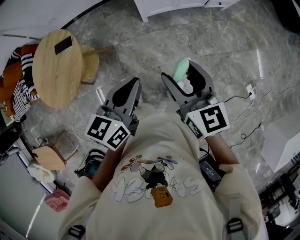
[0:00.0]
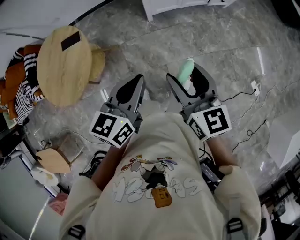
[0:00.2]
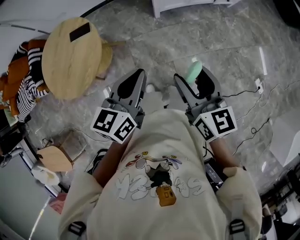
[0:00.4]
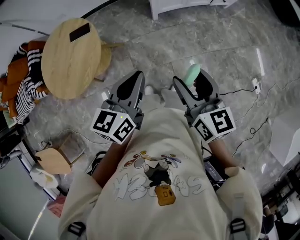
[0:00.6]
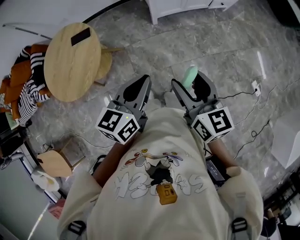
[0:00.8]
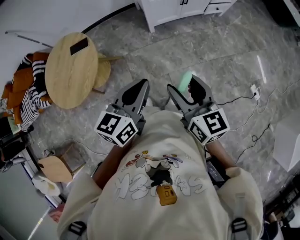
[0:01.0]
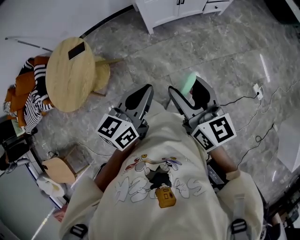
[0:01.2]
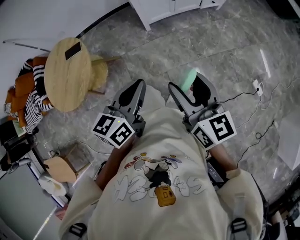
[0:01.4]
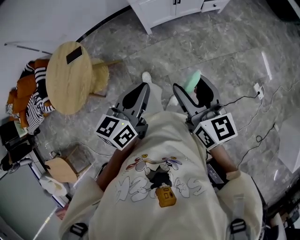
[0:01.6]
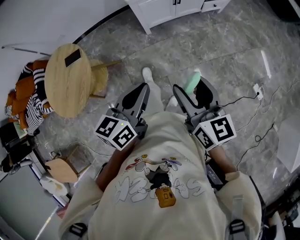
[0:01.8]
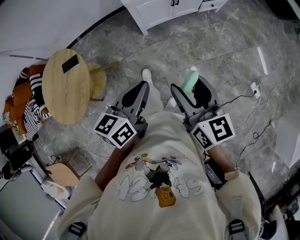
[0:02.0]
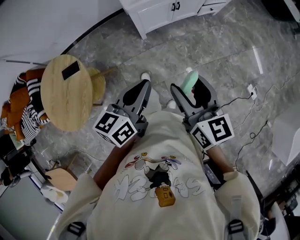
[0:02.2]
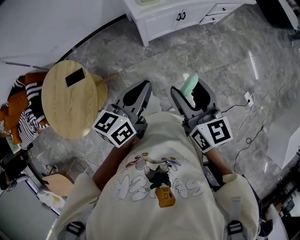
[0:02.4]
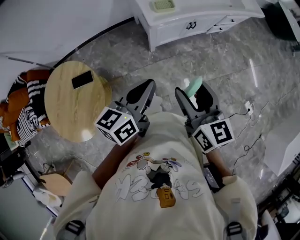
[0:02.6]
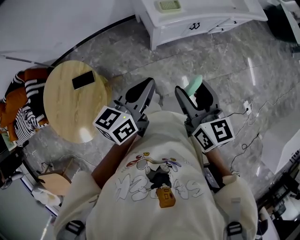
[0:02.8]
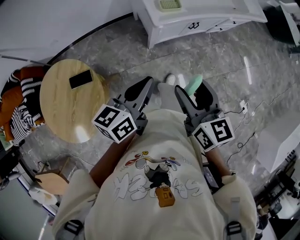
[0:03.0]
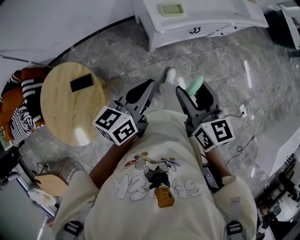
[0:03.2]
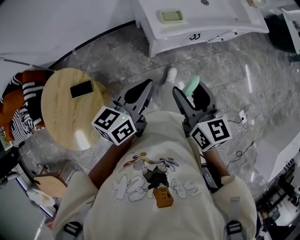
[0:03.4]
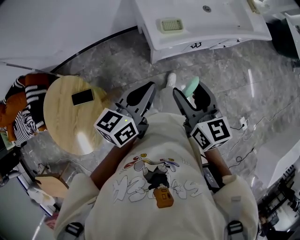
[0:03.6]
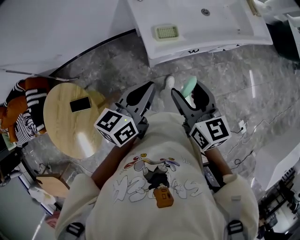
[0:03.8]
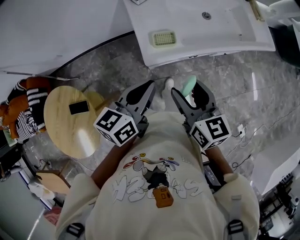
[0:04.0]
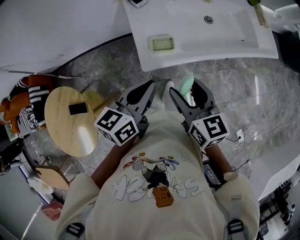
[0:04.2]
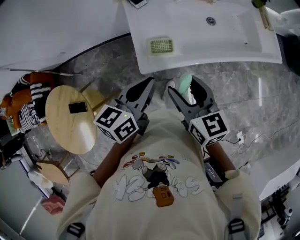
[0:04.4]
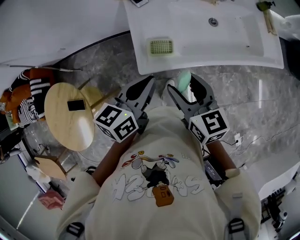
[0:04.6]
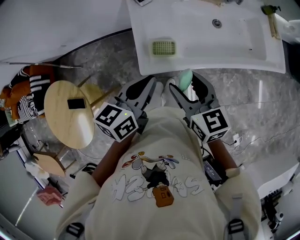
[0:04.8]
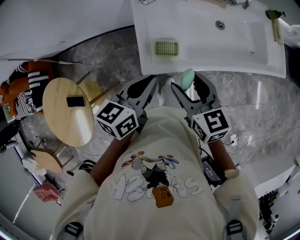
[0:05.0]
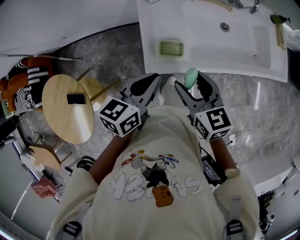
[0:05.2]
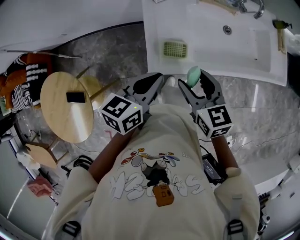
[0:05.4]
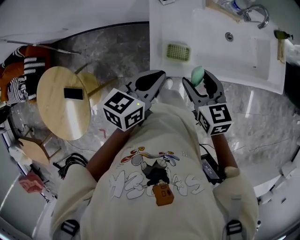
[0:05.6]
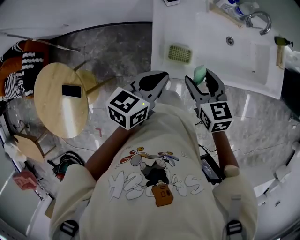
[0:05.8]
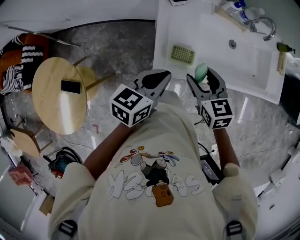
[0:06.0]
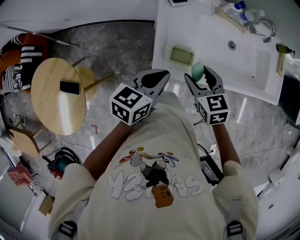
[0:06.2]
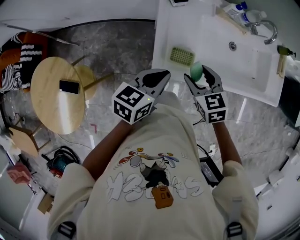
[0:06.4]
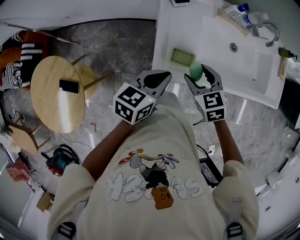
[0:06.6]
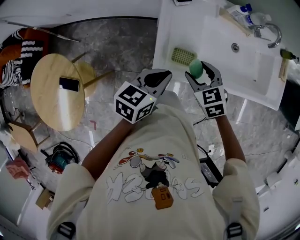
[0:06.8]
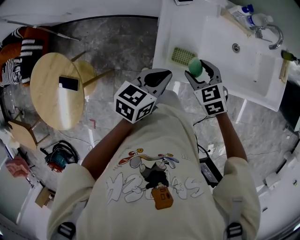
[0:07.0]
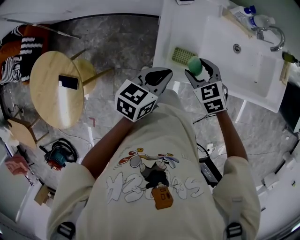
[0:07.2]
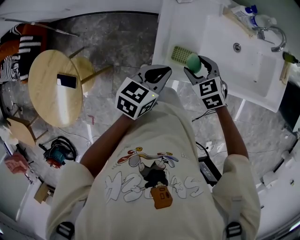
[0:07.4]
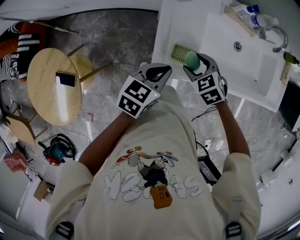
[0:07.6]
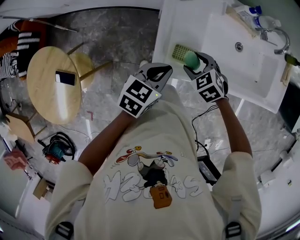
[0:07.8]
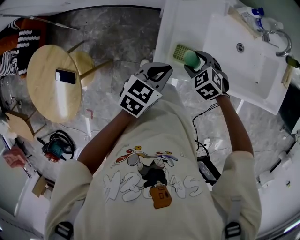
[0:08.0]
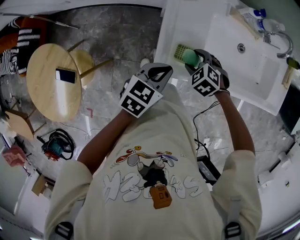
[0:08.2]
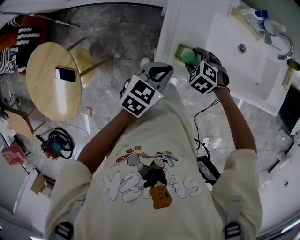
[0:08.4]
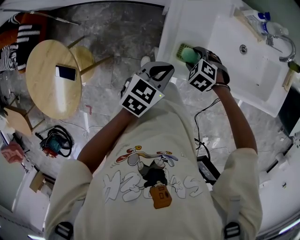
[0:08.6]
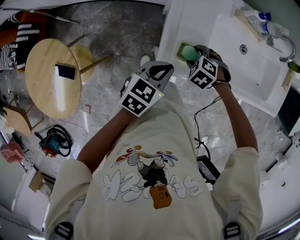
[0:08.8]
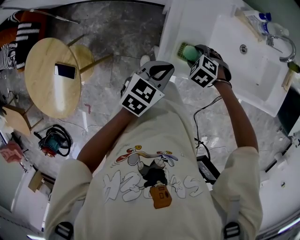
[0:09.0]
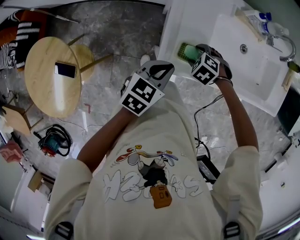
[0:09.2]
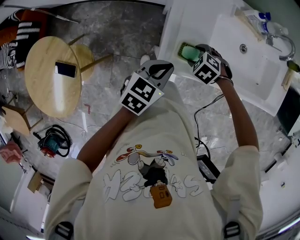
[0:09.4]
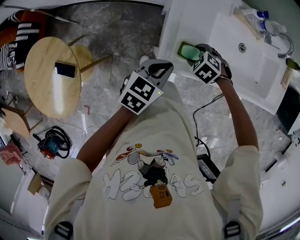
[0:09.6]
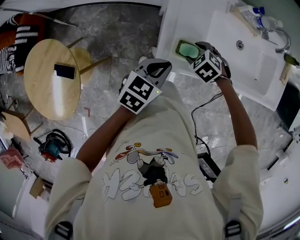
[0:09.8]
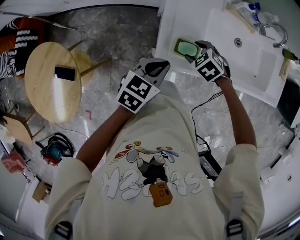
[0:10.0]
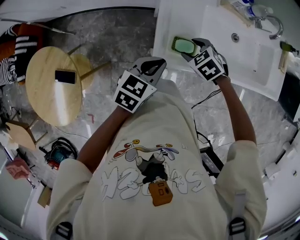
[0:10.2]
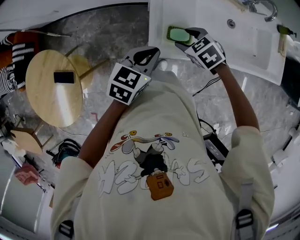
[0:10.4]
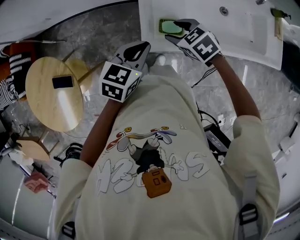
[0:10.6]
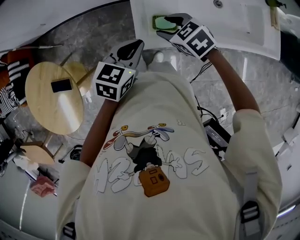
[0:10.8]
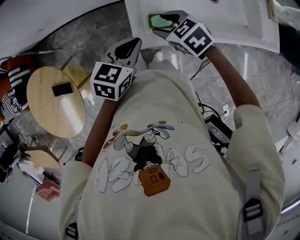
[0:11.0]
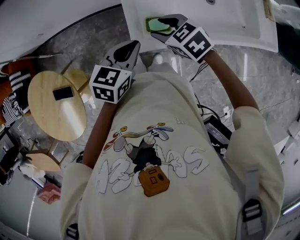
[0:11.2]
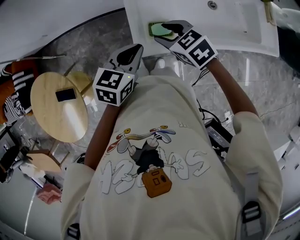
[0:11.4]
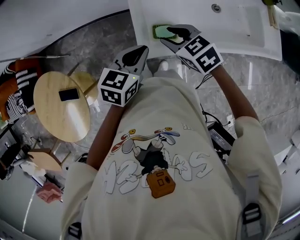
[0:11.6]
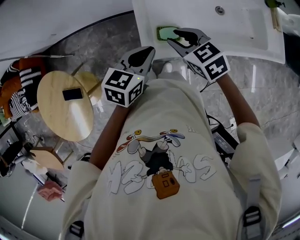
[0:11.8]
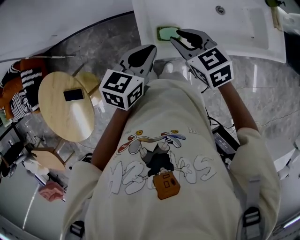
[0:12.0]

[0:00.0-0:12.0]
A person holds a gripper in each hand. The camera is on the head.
0:00.0 to 0:01.6: The right gripper shifts some 10 cm backward and to the right; the left gripper heads backward, covering about 5 cm, and goes to the left and returns, about 10 cm each way.
0:01.6 to 0:03.0: The two grippers go approximately 30 cm forward and to the left.
0:03.0 to 0:04.4: The right gripper goes approximately 25 cm forward; the left gripper shifts about 30 cm forward and to the right.
0:04.4 to 0:06.0: The left gripper goes roughly 10 cm forward and downward; the right gripper moves forward and downward, approximately 15 cm, and swivels roughly 20 degrees.
0:06.0 to 0:07.6: The left gripper shifts some 5 cm downward. Meanwhile the right gripper travels downward by approximately 10 cm, and changes its angle by roughly 30 degrees.
0:07.6 to 0:09.0: The right gripper heads downward, covering approximately 5 cm, and changes its angle by approximately 30 degrees.
0:09.0 to 0:10.4: The right gripper shifts approximately 10 cm upward, and swivels approximately 30 degrees.
0:10.4 to 0:12.0: The right gripper shifts roughly 10 cm upward, changes its angle by roughly 30 degrees, and closes up. Meanwhile the left gripper shifts by approximately 5 cm.

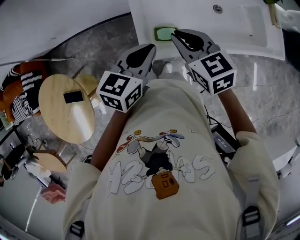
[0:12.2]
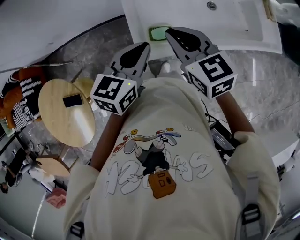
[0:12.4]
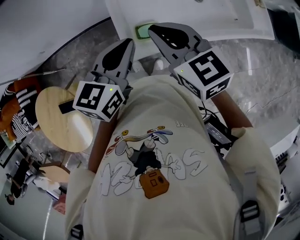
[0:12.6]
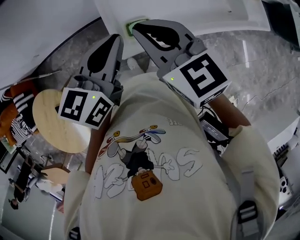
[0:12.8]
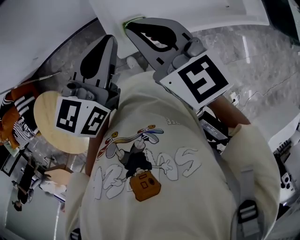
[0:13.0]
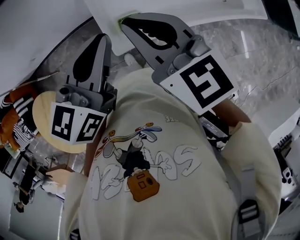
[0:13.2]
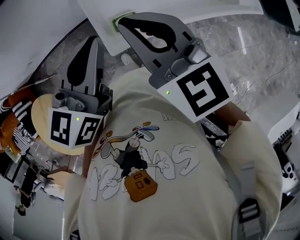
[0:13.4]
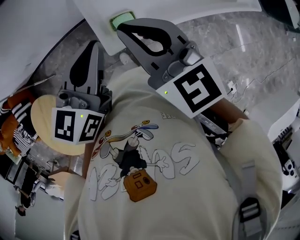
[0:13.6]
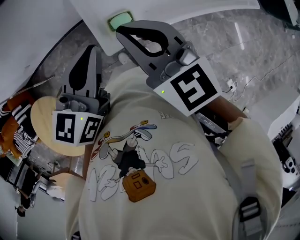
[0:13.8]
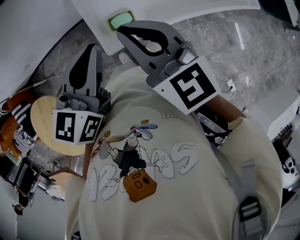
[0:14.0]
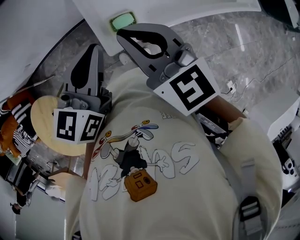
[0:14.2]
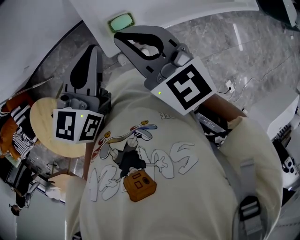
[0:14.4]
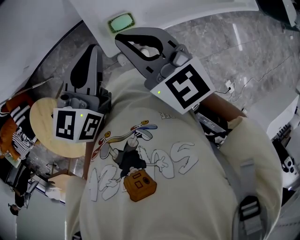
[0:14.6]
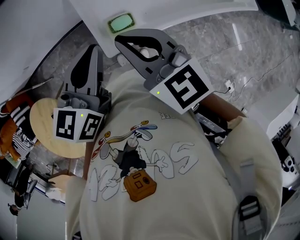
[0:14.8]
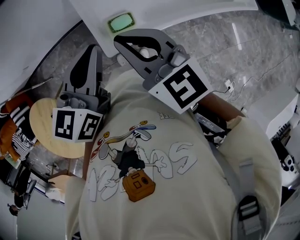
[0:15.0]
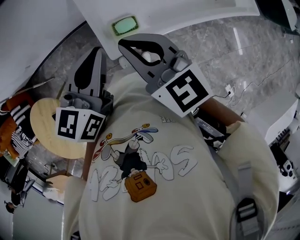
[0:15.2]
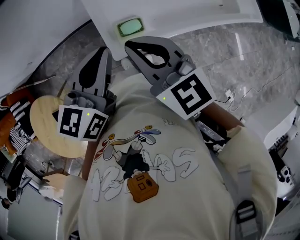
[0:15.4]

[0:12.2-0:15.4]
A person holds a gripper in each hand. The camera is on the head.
0:12.2 to 0:13.8: Both grippers move upward, roughly 10 cm. The right gripper changes its angle by approximately 20 degrees.
0:13.8 to 0:15.4: There are only small adjustments of the grippers.

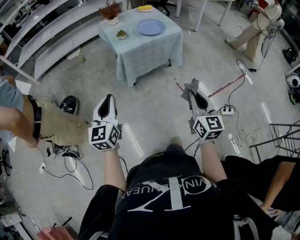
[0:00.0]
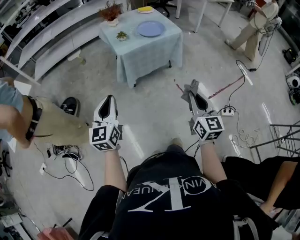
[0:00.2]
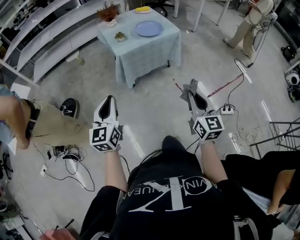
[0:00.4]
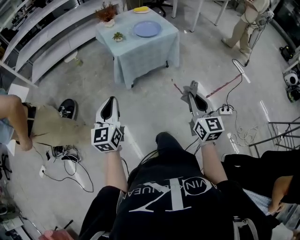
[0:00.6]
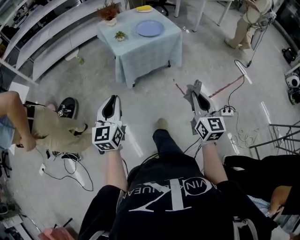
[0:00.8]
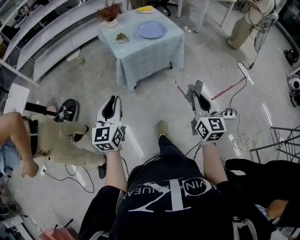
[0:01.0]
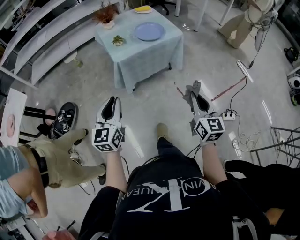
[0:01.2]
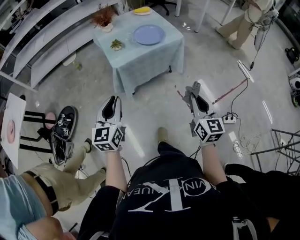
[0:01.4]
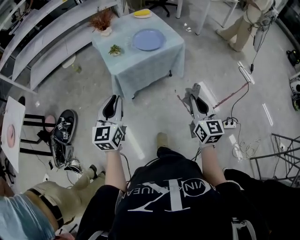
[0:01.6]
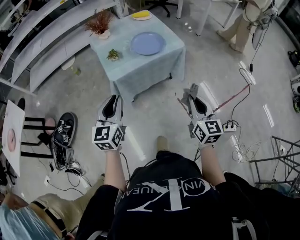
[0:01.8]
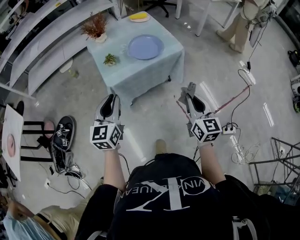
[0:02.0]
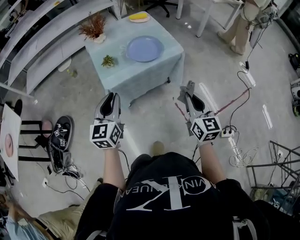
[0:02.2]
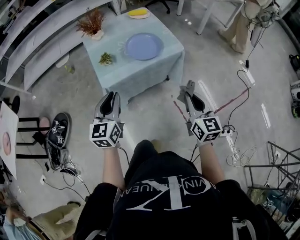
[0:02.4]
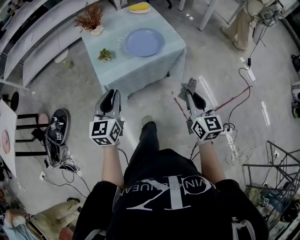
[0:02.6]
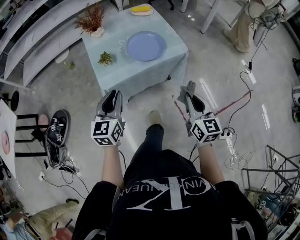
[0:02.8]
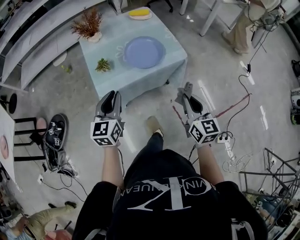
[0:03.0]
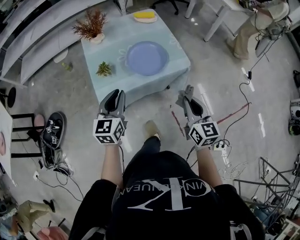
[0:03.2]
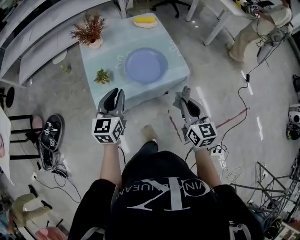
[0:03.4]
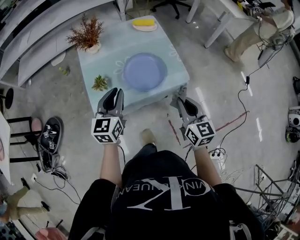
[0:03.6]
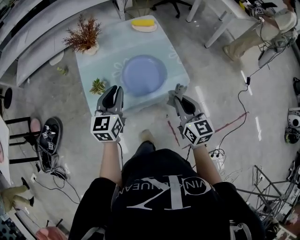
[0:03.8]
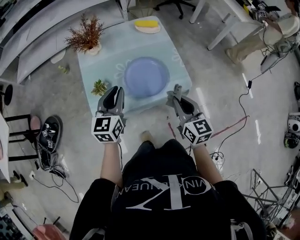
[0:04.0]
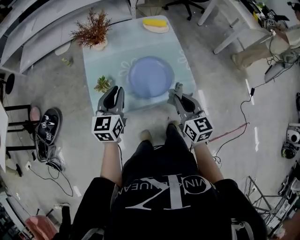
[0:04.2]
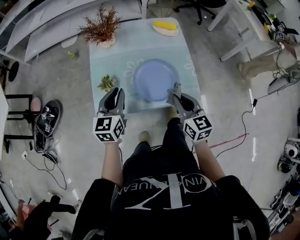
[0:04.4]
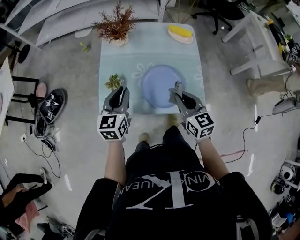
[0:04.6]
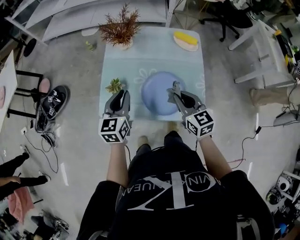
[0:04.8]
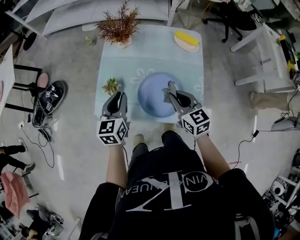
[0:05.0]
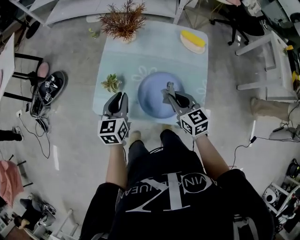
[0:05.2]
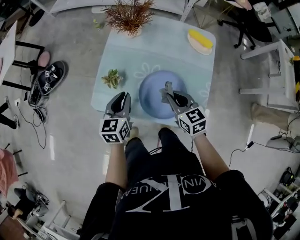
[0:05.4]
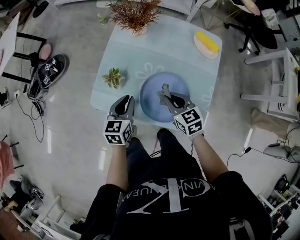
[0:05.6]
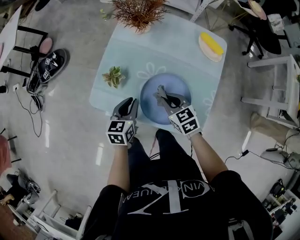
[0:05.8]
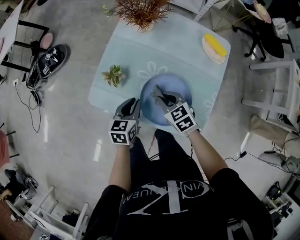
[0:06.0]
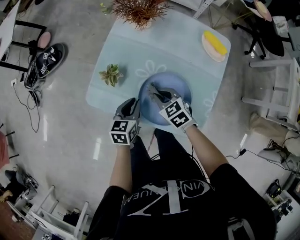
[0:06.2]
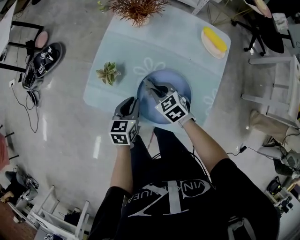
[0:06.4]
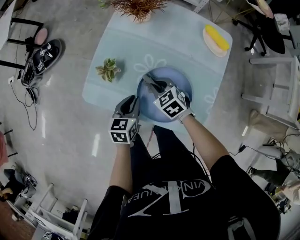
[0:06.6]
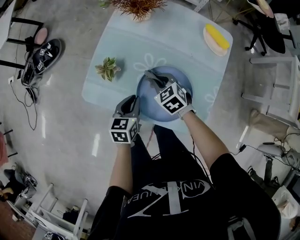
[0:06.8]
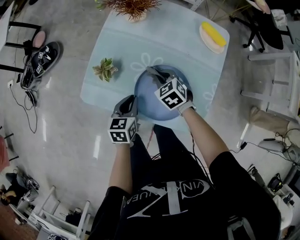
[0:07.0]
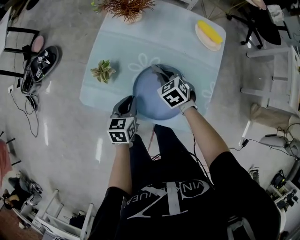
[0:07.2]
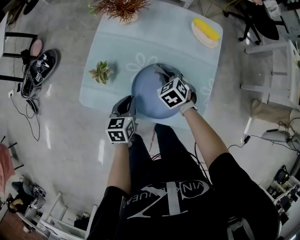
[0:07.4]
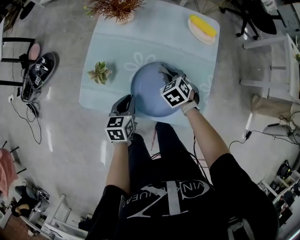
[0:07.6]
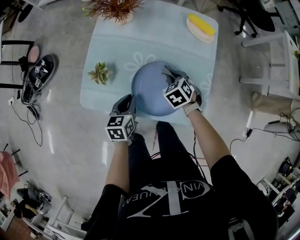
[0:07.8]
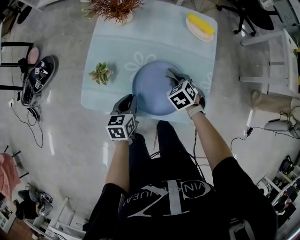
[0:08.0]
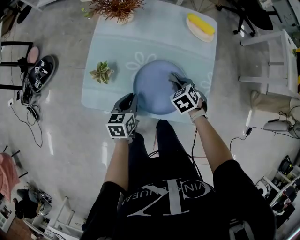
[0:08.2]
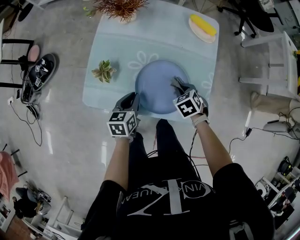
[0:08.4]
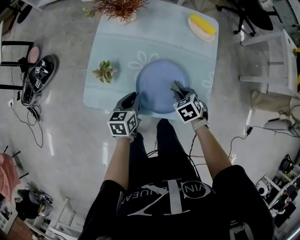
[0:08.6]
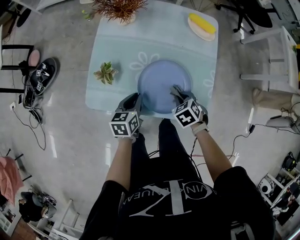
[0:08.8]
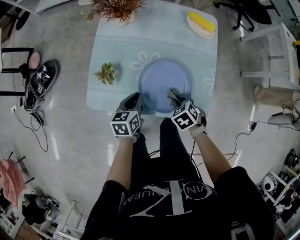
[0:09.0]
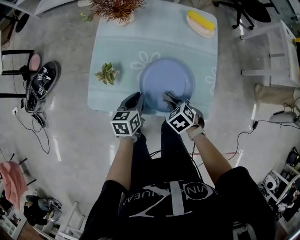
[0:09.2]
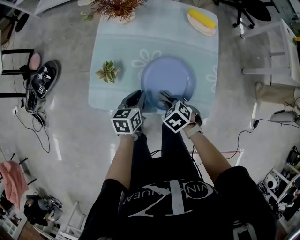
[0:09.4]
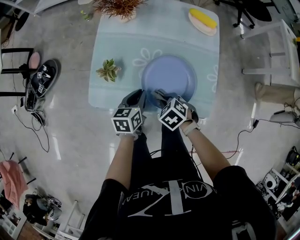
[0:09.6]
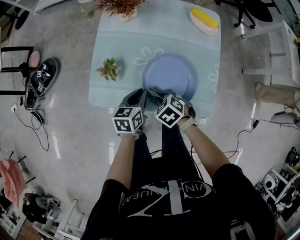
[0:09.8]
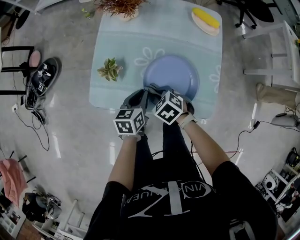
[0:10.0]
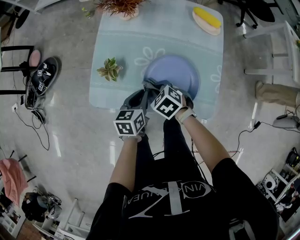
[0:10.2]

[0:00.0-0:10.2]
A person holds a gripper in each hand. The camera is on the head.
0:00.0 to 0:01.4: Both grippers move forward, approximately 15 cm.
0:01.4 to 0:03.0: Both grippers move forward, roughly 30 cm.
0:03.0 to 0:04.4: Both grippers travel together forward, roughly 25 cm. The right gripper changes its angle by roughly 30 degrees.
0:04.4 to 0:05.8: The right gripper shifts by some 25 cm, and turns by approximately 50 degrees. Meanwhile the left gripper moves downward, some 15 cm, and swivels about 30 degrees.
0:05.8 to 0:07.2: The left gripper travels downward by approximately 5 cm, while the right gripper shifts roughly 10 cm downward and forward, and swivels roughly 20 degrees.
0:07.2 to 0:08.8: The right gripper heads backward and to the right, covering approximately 15 cm.
0:08.8 to 0:10.2: The right gripper heads to the left, covering roughly 15 cm.
